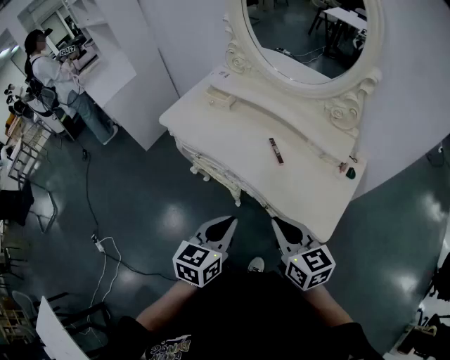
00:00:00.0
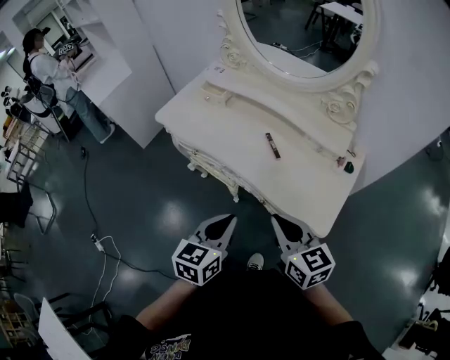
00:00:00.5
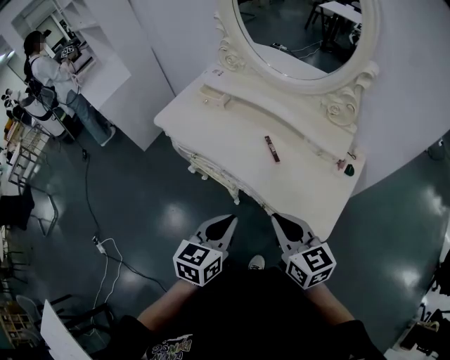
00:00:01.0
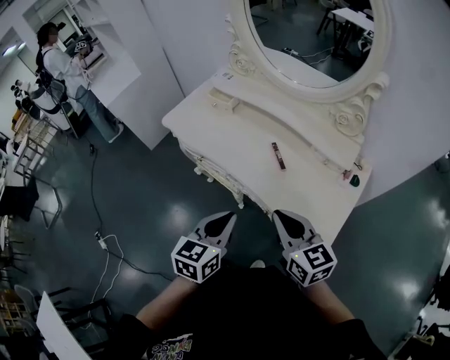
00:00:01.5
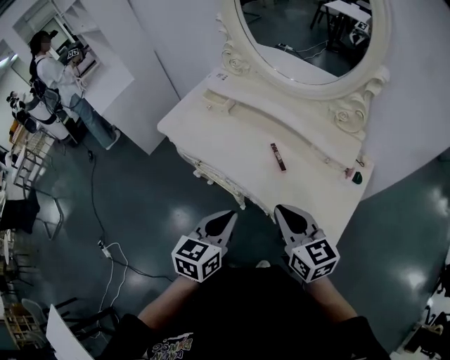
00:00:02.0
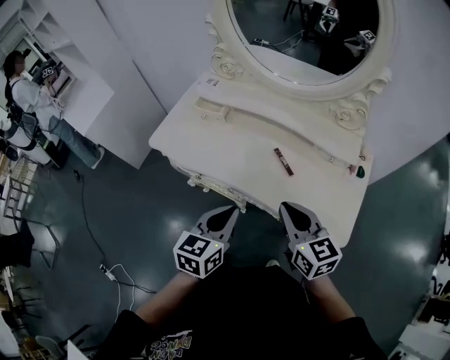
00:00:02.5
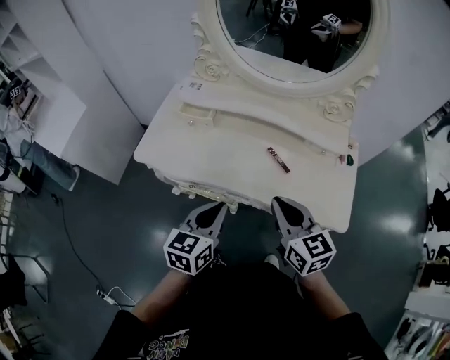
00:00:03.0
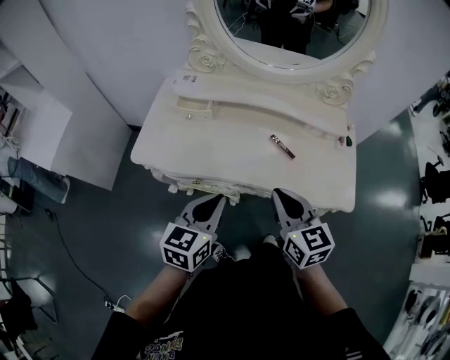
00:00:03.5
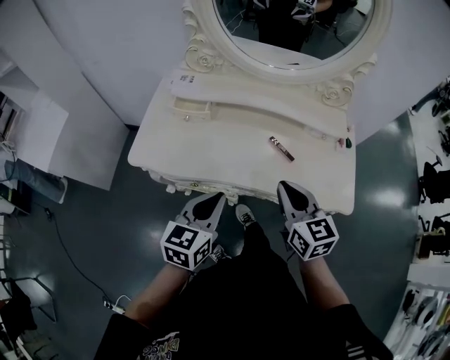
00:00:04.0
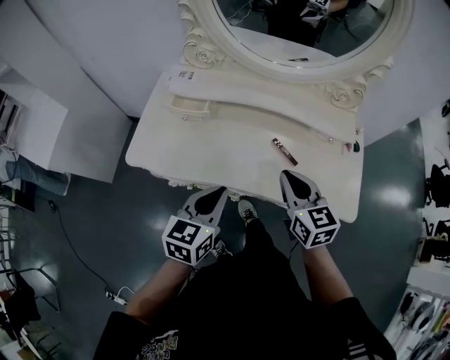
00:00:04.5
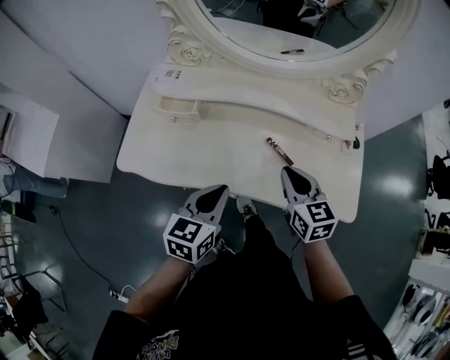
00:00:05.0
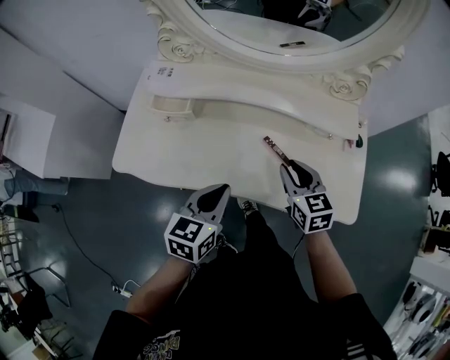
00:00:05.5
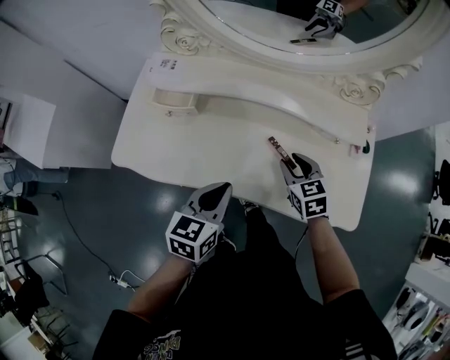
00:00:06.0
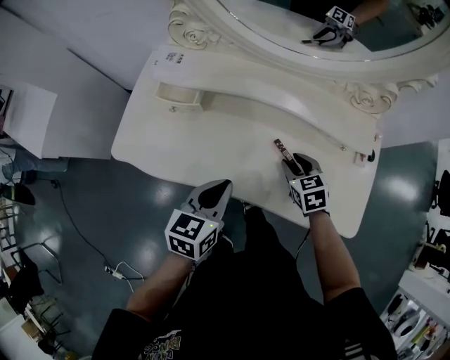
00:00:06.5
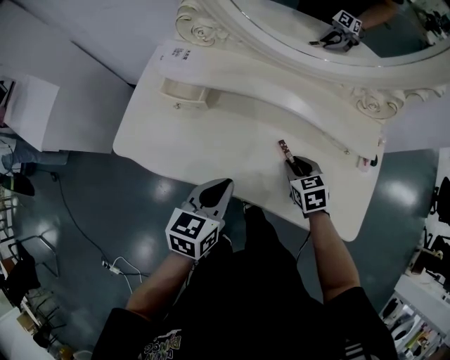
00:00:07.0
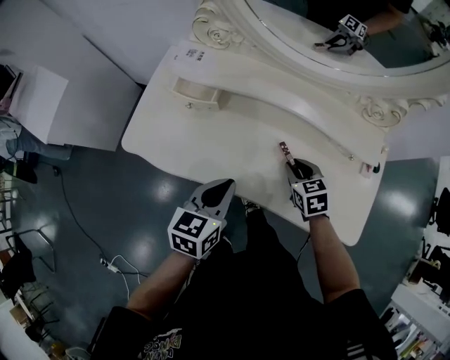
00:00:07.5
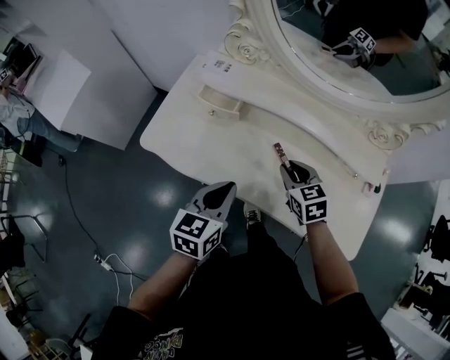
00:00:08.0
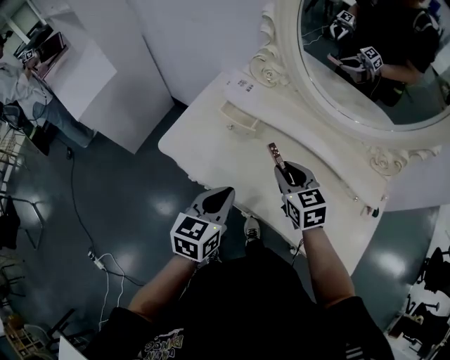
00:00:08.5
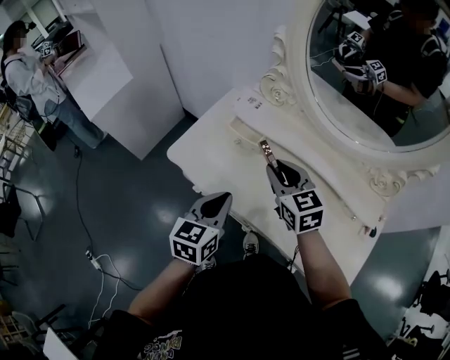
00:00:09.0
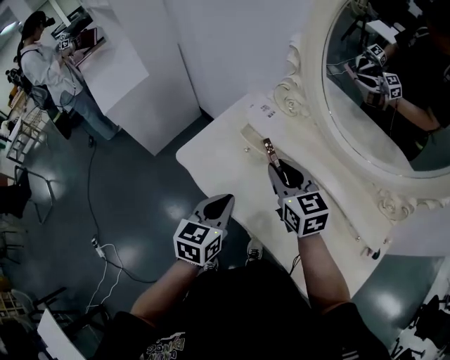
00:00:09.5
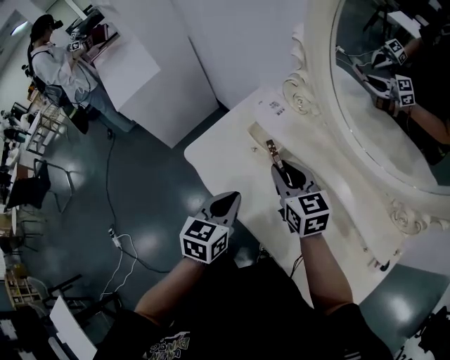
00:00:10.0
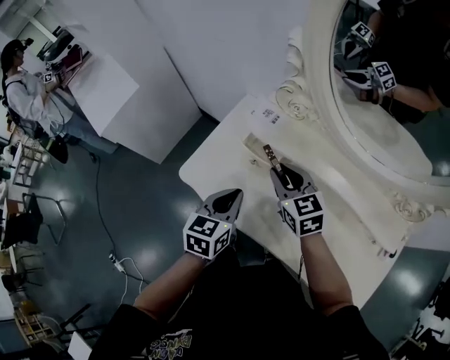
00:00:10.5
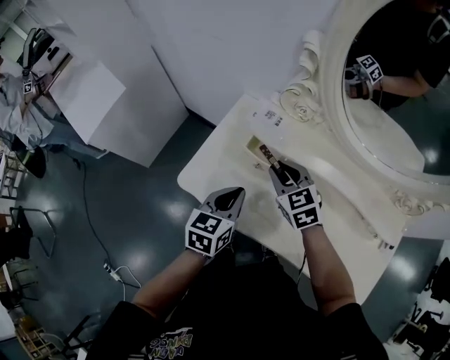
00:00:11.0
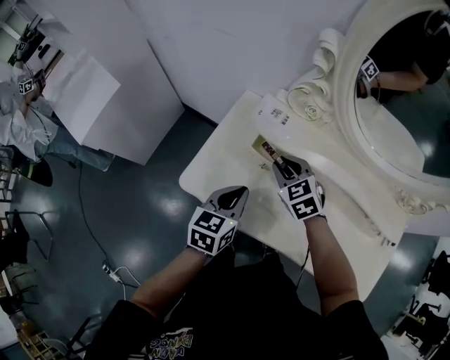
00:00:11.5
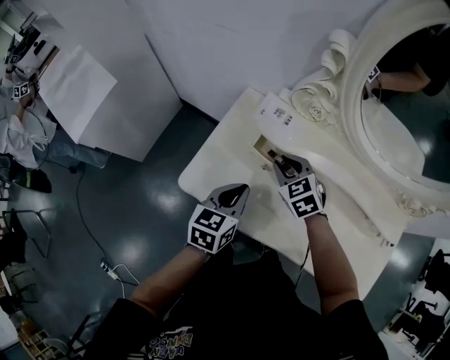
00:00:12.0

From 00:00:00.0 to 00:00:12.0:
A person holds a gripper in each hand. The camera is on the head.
From 00:00:00.0 to 00:00:02.0: Both grippers move forward, approximately 5 cm.
From 00:00:02.0 to 00:00:04.0: The left gripper shifts by some 20 cm, and turns by approximately 20 degrees. The right gripper changes place by about 15 cm, and turns by approximately 30 degrees.
From 00:00:04.0 to 00:00:06.0: The right gripper shifts about 25 cm downward, forward and to the right, swivels some 20 degrees, and opens; the left gripper is displaced forward, downward and to the right by approximately 15 cm.
From 00:00:06.0 to 00:00:08.0: The grippers both shift to the left by roughly 10 cm.
From 00:00:08.0 to 00:00:10.0: The left gripper shifts about 5 cm forward, and changes its angle by about 20 degrees; the right gripper travels to the left, forward and upward by about 20 cm, and swivels about 30 degrees.
From 00:00:10.0 to 00:00:12.0: The right gripper moves downward, forward and to the left, about 15 cm, and swivels roughly 30 degrees, while the left gripper shifts about 15 cm forward, to the left and downward, and turns by some 20 degrees.

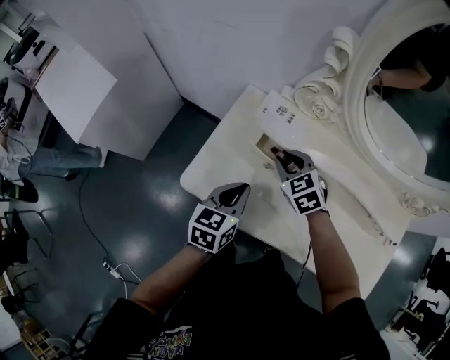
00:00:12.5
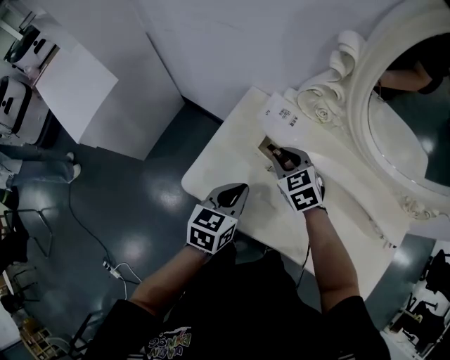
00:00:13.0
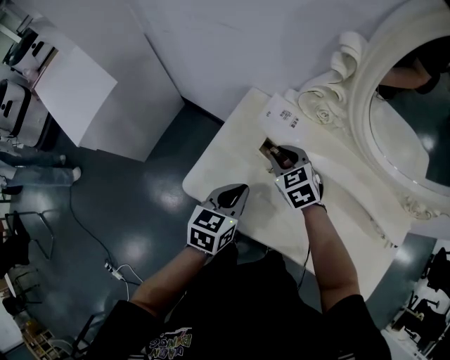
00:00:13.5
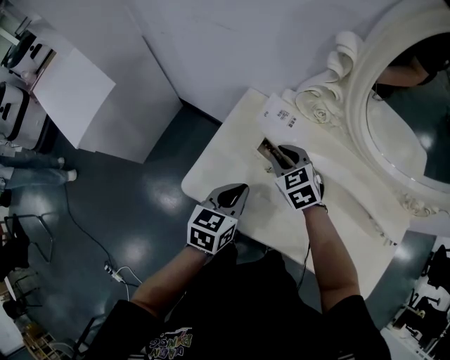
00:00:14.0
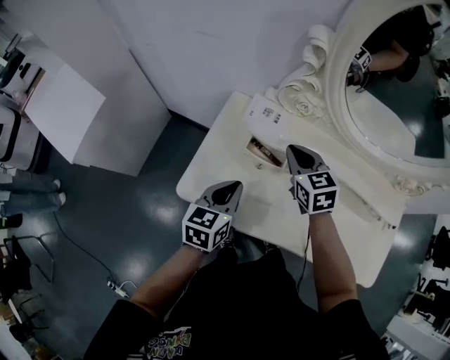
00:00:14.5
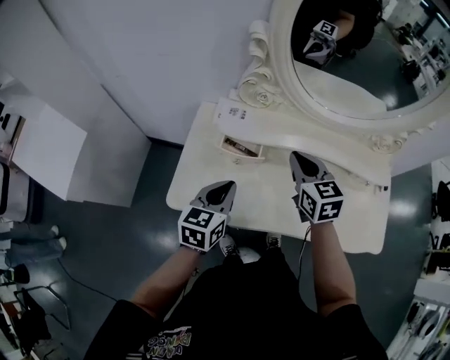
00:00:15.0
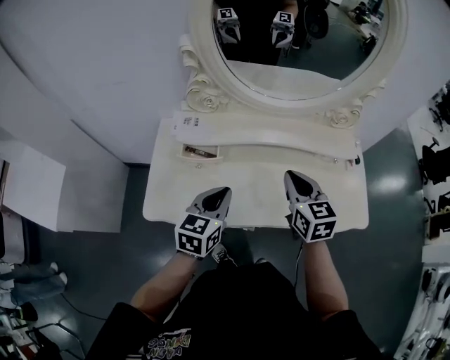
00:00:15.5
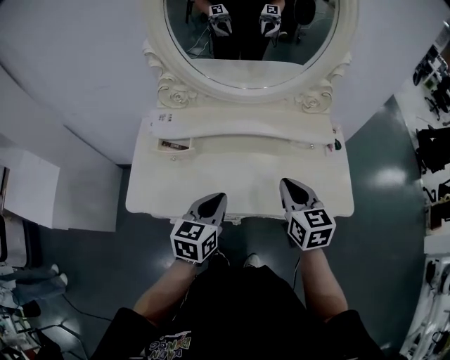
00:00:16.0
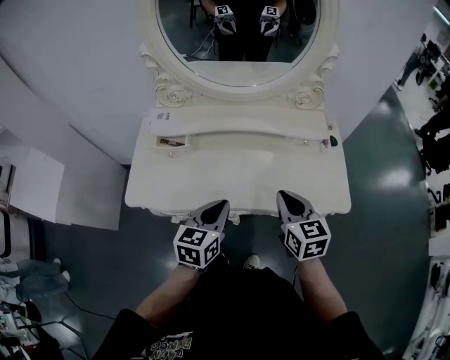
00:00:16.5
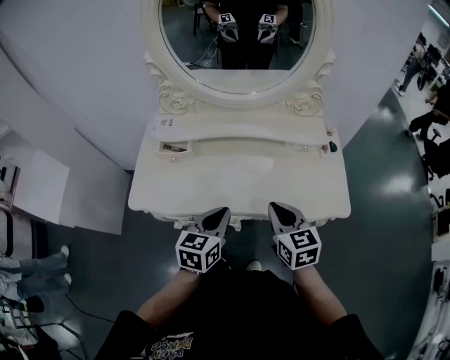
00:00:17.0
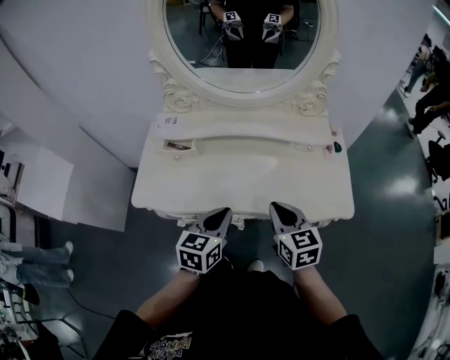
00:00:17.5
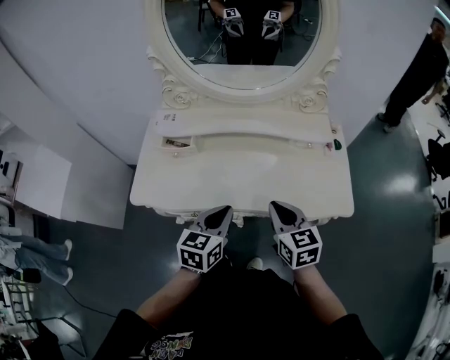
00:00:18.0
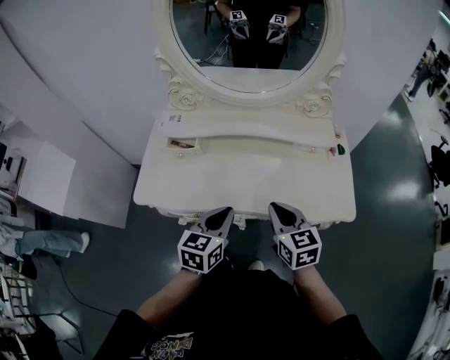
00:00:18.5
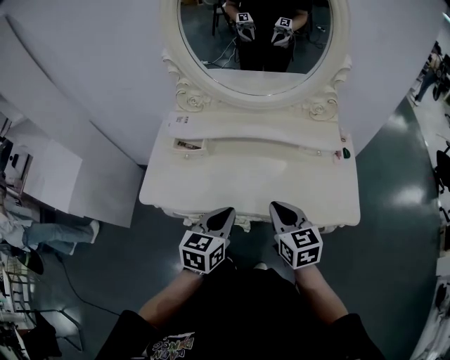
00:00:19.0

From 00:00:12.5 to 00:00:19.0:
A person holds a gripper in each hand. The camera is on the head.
From 00:00:12.5 to 00:00:14.5: The right gripper is displaced upward by roughly 5 cm, and turns by approximately 20 degrees.
From 00:00:14.5 to 00:00:17.0: The grippers both shift to the right and backward by some 40 cm. The right gripper turns by approximately 30 degrees.
From 00:00:17.0 to 00:00:19.0: There are only small adjustments of the grippers.

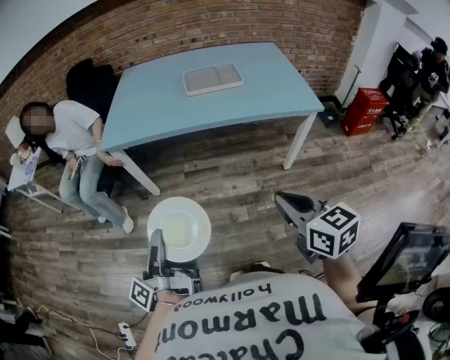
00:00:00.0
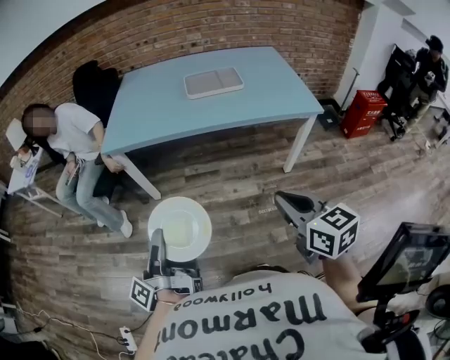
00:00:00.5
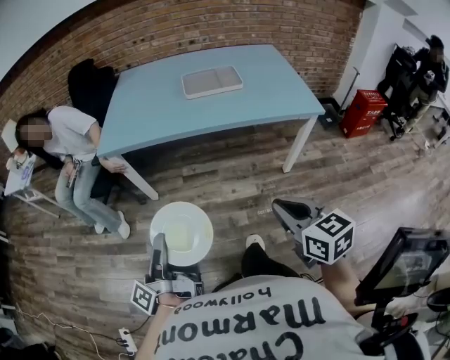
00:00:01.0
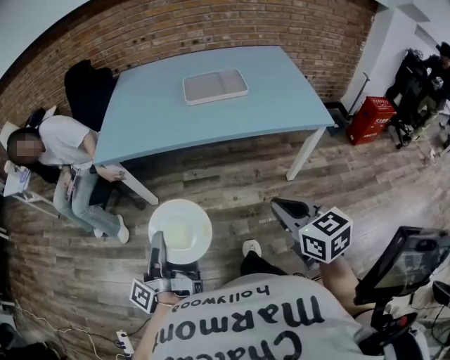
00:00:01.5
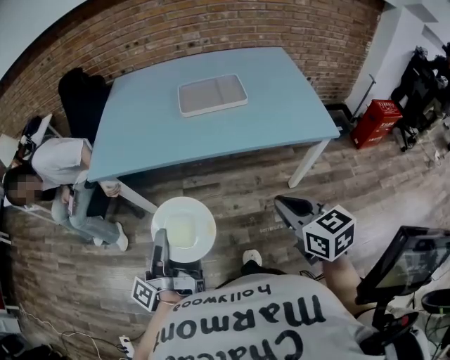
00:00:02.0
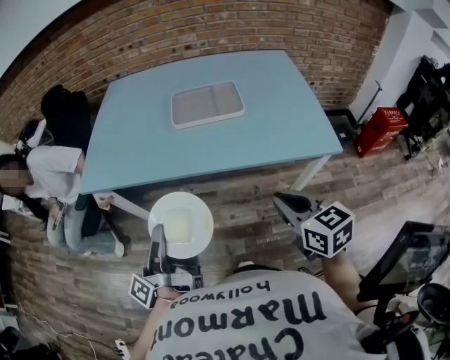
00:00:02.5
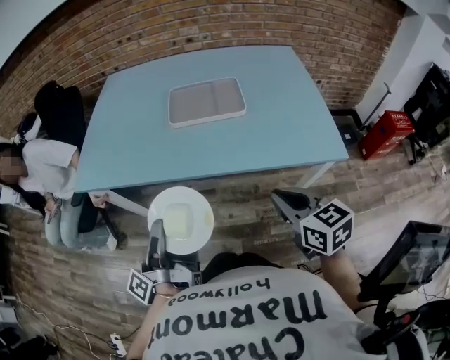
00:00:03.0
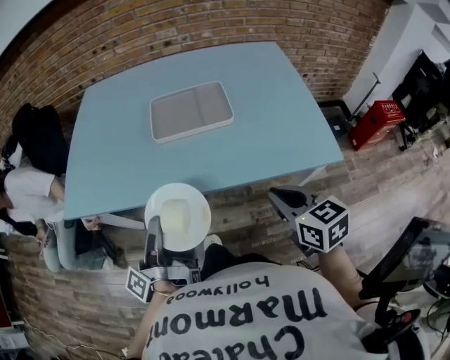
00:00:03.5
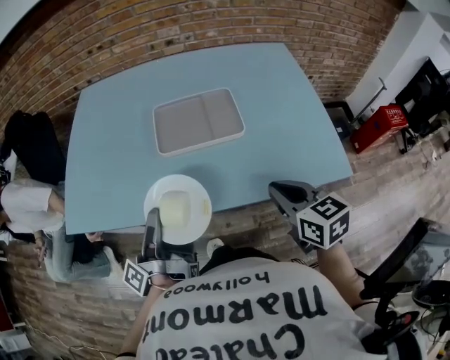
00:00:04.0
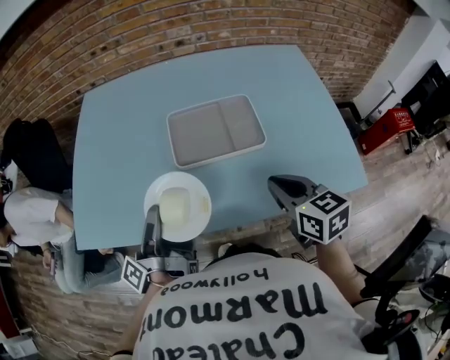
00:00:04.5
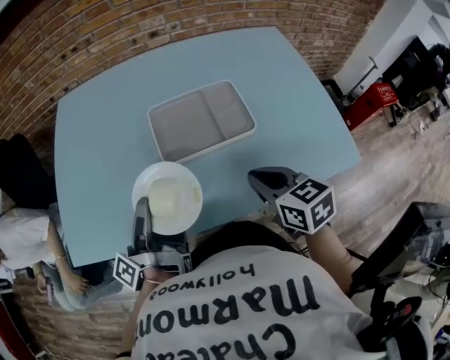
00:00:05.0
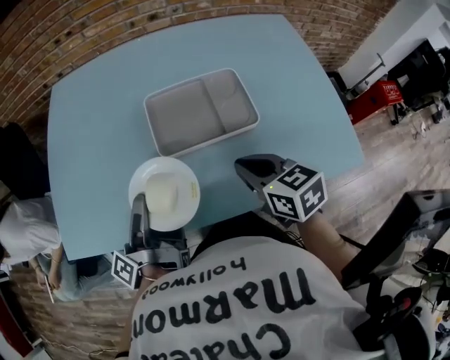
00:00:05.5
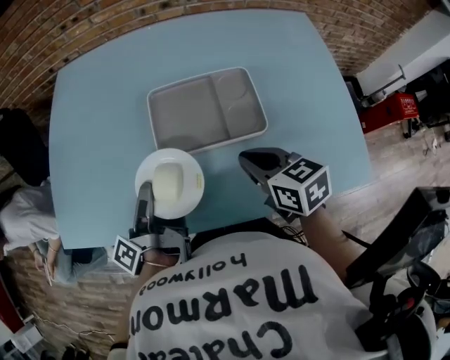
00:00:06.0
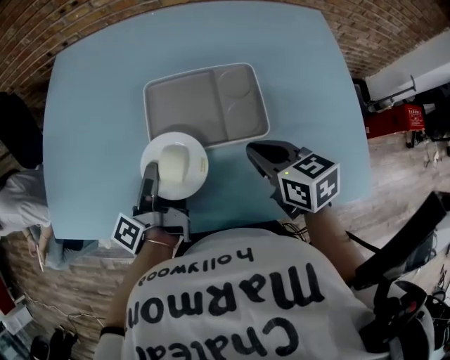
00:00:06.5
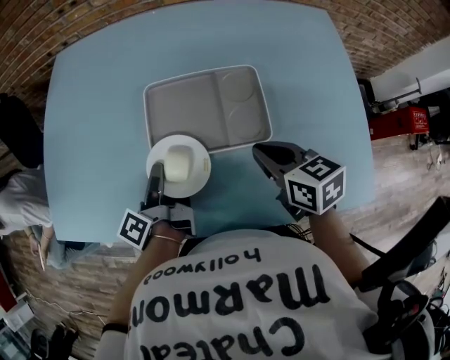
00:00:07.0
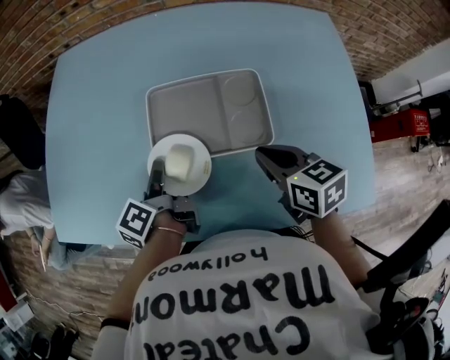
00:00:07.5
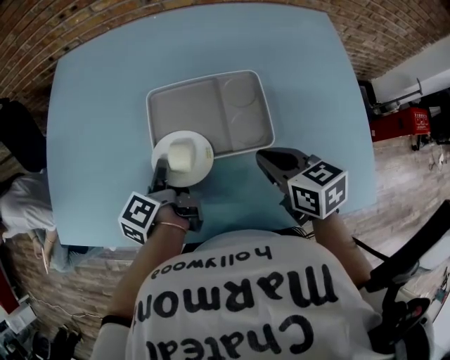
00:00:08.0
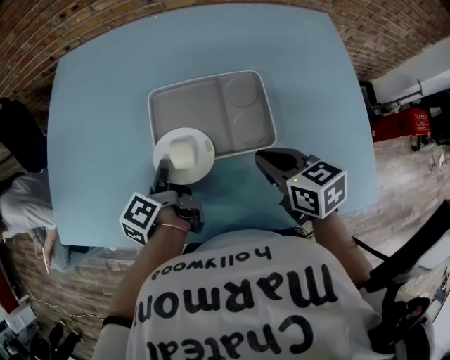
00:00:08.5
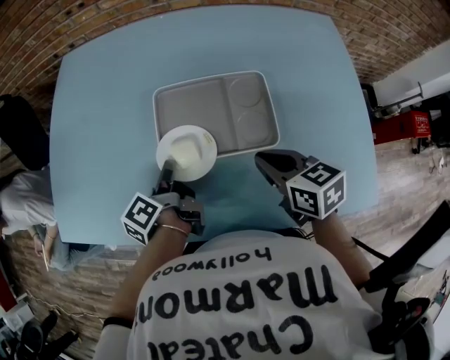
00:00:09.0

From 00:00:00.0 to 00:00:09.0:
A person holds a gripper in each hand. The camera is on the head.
From 00:00:00.0 to 00:00:02.0: The right gripper moves some 20 cm.
From 00:00:02.0 to 00:00:04.5: The right gripper changes place by some 35 cm.
From 00:00:04.5 to 00:00:07.0: The right gripper changes place by about 15 cm.
